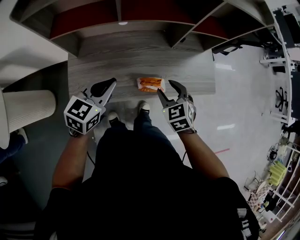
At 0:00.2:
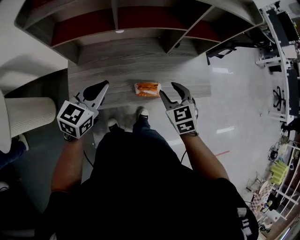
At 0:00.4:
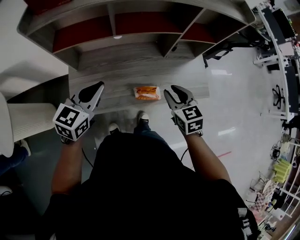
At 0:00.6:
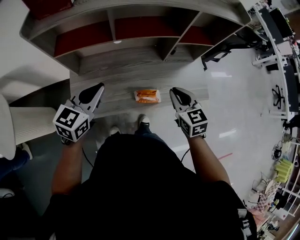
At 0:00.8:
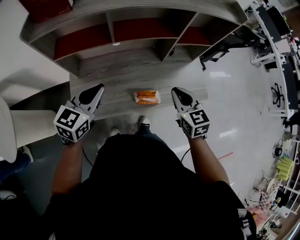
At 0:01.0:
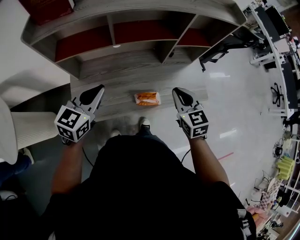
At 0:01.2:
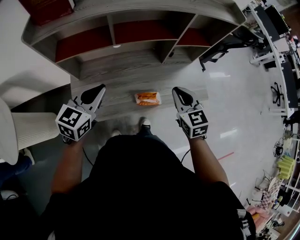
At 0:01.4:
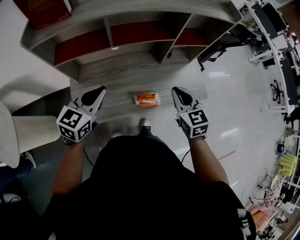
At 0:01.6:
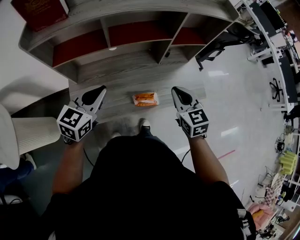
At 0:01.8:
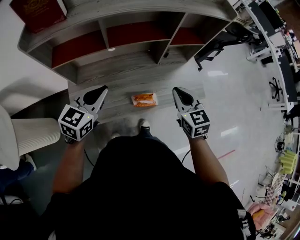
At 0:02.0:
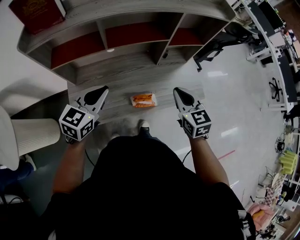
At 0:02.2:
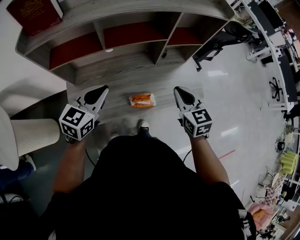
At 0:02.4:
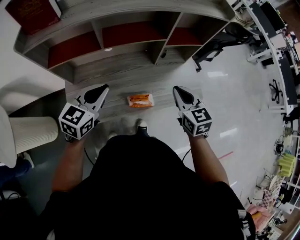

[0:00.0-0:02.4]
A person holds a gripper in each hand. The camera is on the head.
0:00.0 to 0:01.2: The two grippers go some 10 cm upward. The right gripper turns by roughly 20 degrees, and closes its fingers.
0:01.2 to 0:02.4: The two grippers go about 5 cm to the right.

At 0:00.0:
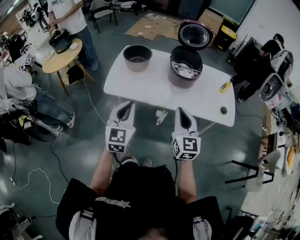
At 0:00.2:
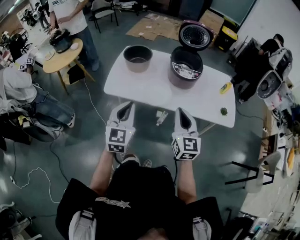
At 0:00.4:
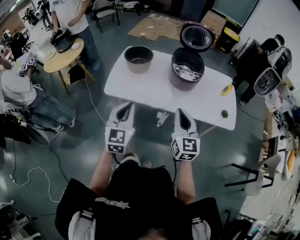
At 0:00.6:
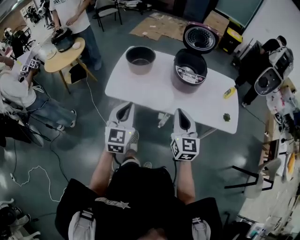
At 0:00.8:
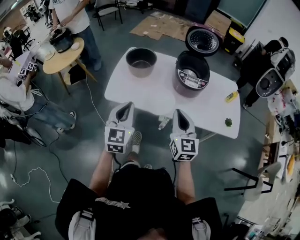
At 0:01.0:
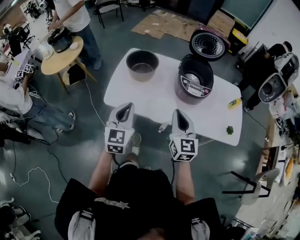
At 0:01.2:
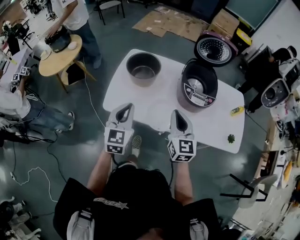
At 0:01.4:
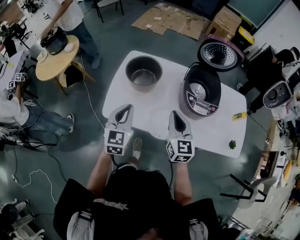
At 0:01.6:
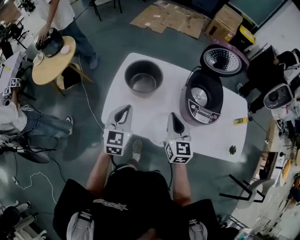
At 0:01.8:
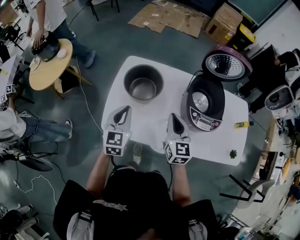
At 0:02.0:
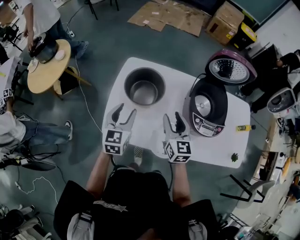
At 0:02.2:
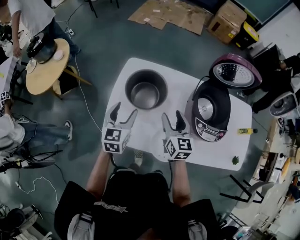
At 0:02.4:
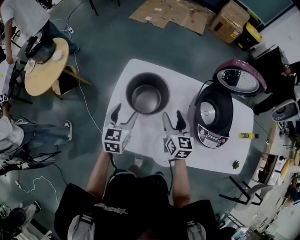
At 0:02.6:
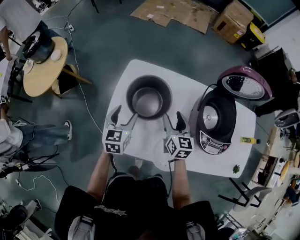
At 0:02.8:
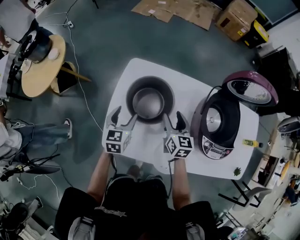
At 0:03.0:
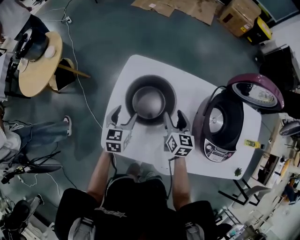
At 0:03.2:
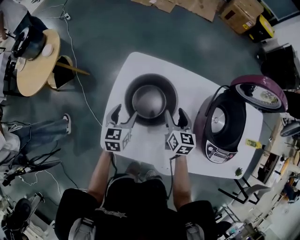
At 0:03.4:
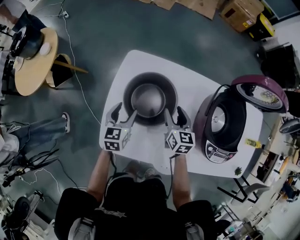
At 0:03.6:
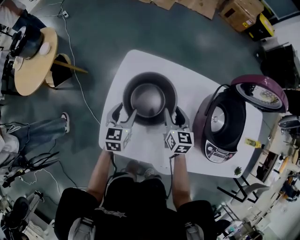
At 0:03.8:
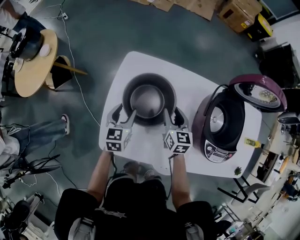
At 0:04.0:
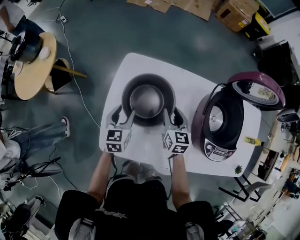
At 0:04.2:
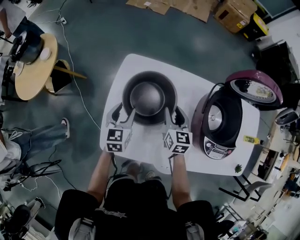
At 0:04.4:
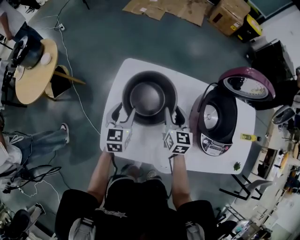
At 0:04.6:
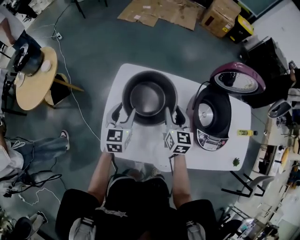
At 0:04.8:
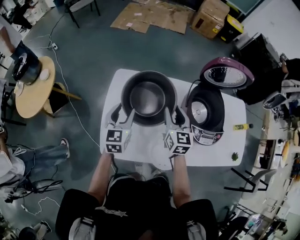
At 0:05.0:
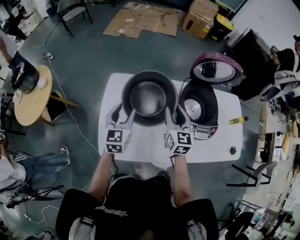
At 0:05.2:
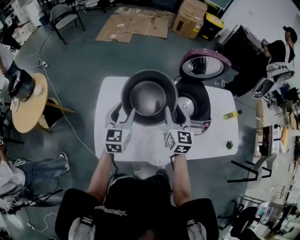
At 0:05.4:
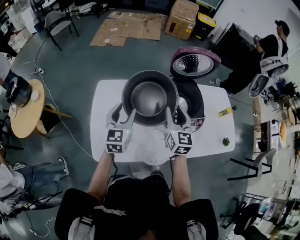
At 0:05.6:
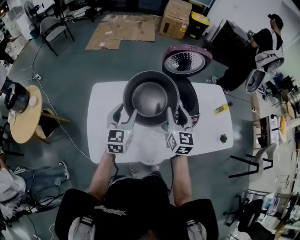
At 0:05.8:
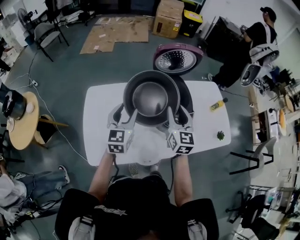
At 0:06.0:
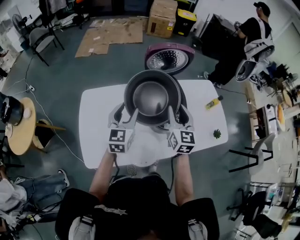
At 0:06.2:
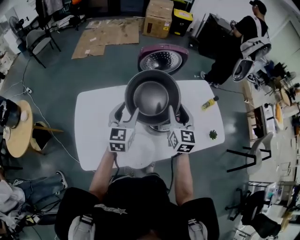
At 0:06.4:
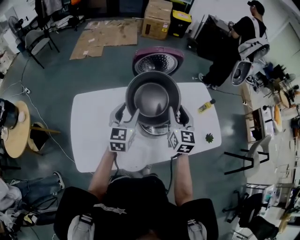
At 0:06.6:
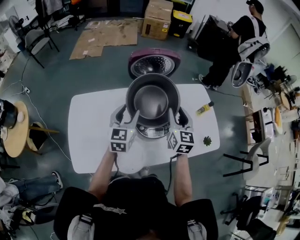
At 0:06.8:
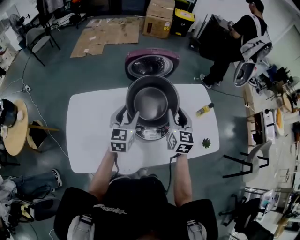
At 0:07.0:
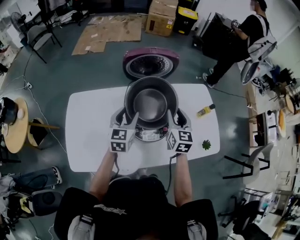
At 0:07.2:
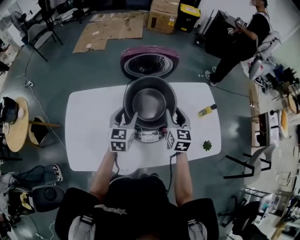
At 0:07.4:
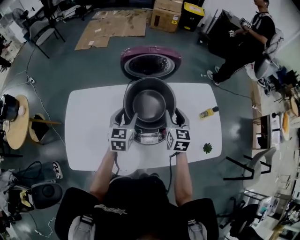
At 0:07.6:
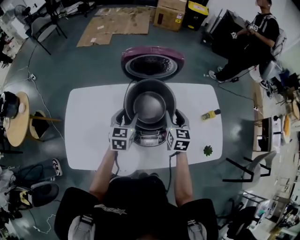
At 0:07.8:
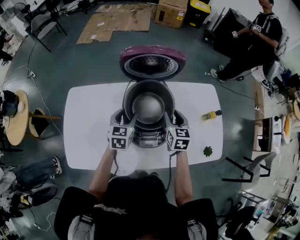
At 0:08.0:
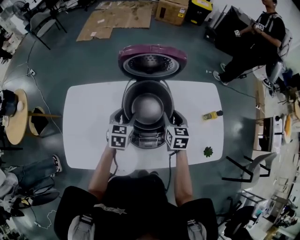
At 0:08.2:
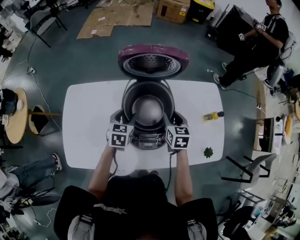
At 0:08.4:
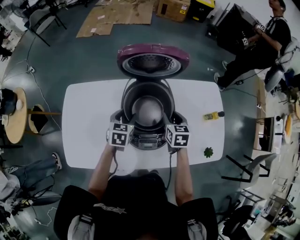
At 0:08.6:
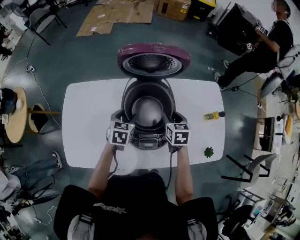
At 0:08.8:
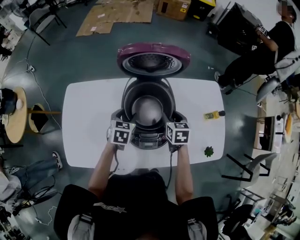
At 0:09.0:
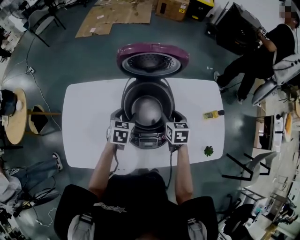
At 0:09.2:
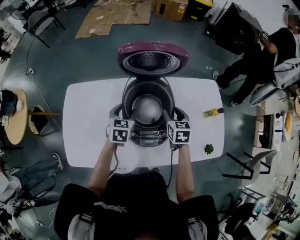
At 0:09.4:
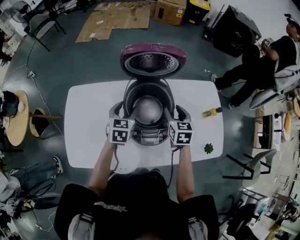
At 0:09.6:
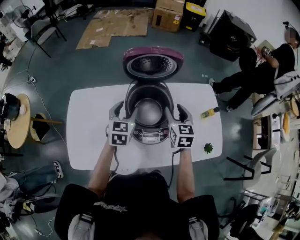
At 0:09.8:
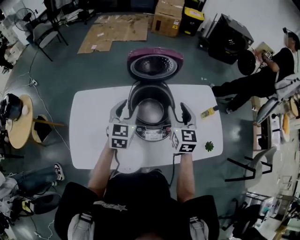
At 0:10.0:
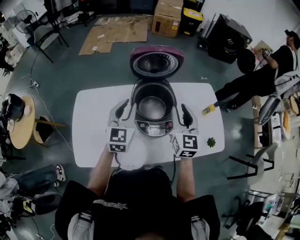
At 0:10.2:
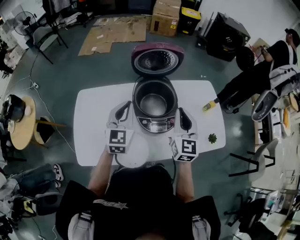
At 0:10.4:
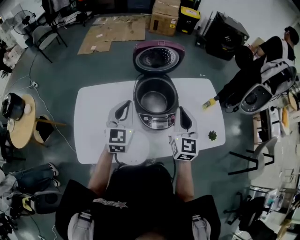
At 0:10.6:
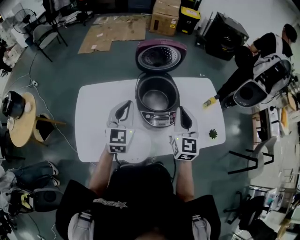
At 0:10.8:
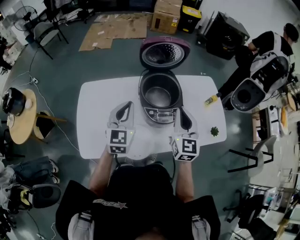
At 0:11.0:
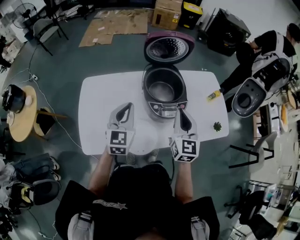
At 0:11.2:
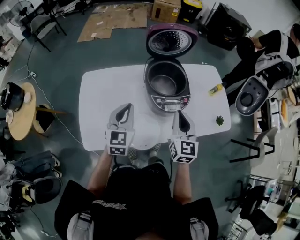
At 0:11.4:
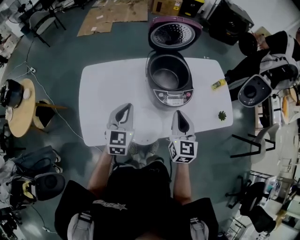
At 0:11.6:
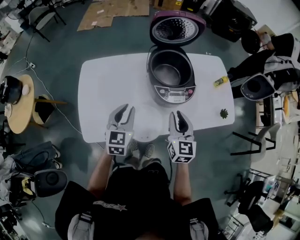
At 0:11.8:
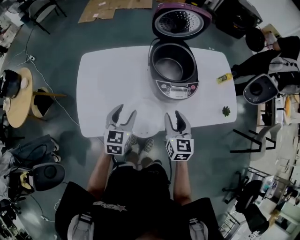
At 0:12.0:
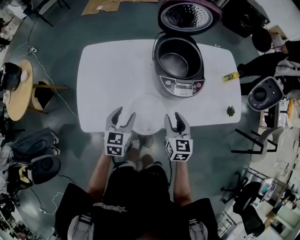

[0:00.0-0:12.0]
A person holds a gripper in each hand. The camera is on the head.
0:00.0 to 0:01.6: Both grippers move forward, some 30 cm.
0:01.6 to 0:03.0: Both grippers travel together forward and downward, some 25 cm. The right gripper turns by some 20 degrees, and opens its fingers. Meanwhile the left gripper swivels approximately 20 degrees, and opens up.
0:03.0 to 0:04.4: The right gripper closes up.
0:04.4 to 0:06.0: Both grippers travel together to the right and upward, about 30 cm. The right gripper swivels some 30 degrees. The left gripper rotates about 30 degrees.
0:06.0 to 0:07.6: The right gripper is displaced downward, forward and to the right by about 20 cm, while the left gripper is displaced to the right, downward and forward by roughly 20 cm.
0:07.6 to 0:09.0: Both grippers move downward, approximately 5 cm. The right gripper rotates approximately 20 degrees.
0:09.0 to 0:10.4: The grippers both shift upward and backward by approximately 25 cm. The right gripper tilts its fingers approximately 40 degrees upward, and closes; the left gripper points its fingers roughly 40 degrees further upward, and closes up.
0:10.4 to 0:12.0: The right gripper moves downward, backward and to the left, about 25 cm, rotates roughly 30 degrees, and opens up. Meanwhile the left gripper is displaced downward and backward by approximately 25 cm, changes its angle by some 30 degrees, and opens its fingers.

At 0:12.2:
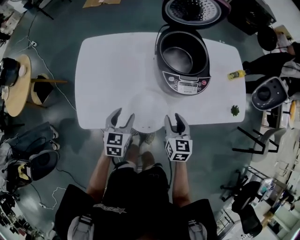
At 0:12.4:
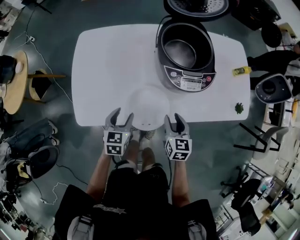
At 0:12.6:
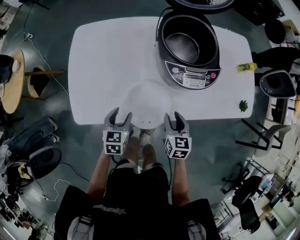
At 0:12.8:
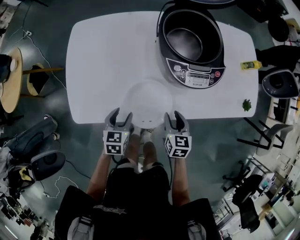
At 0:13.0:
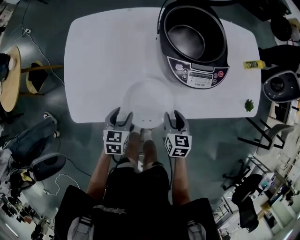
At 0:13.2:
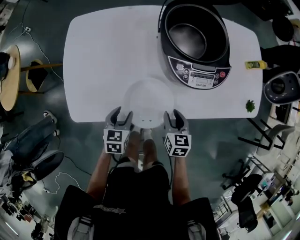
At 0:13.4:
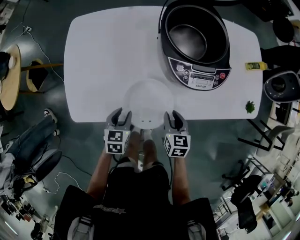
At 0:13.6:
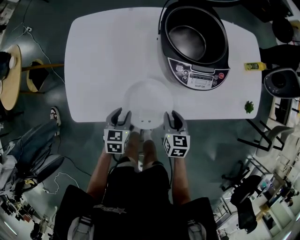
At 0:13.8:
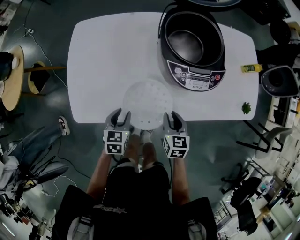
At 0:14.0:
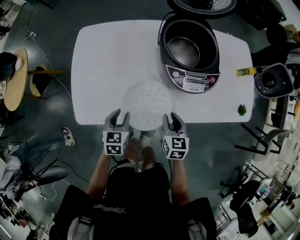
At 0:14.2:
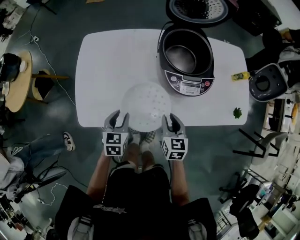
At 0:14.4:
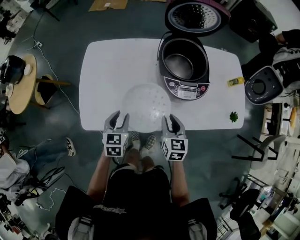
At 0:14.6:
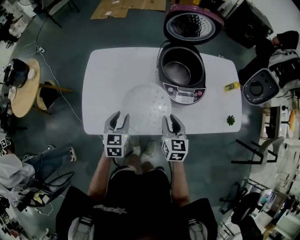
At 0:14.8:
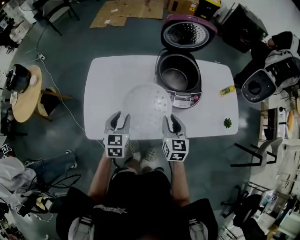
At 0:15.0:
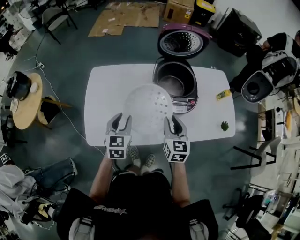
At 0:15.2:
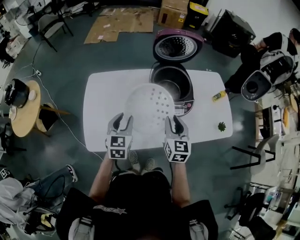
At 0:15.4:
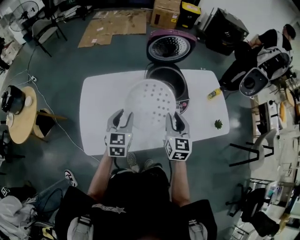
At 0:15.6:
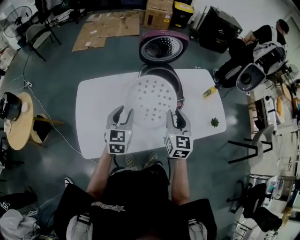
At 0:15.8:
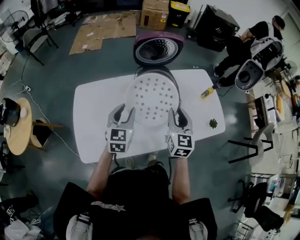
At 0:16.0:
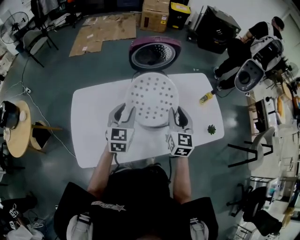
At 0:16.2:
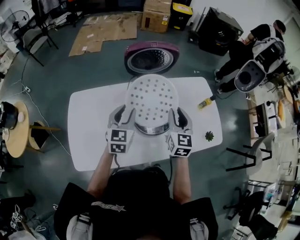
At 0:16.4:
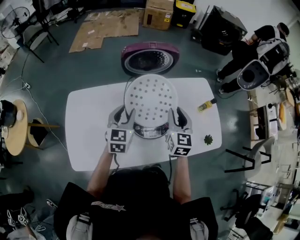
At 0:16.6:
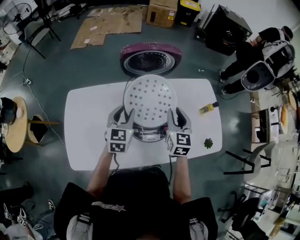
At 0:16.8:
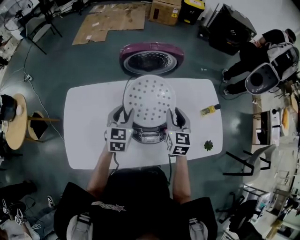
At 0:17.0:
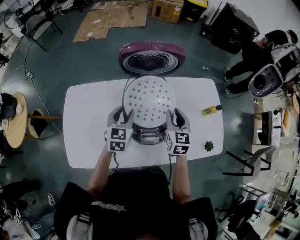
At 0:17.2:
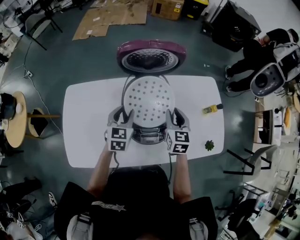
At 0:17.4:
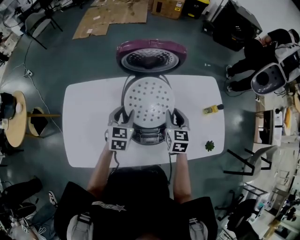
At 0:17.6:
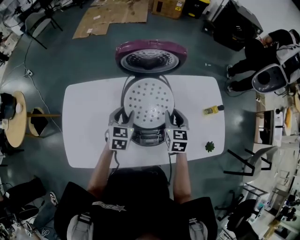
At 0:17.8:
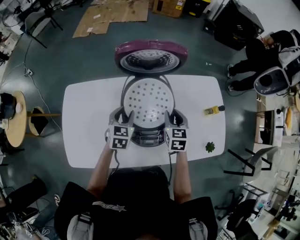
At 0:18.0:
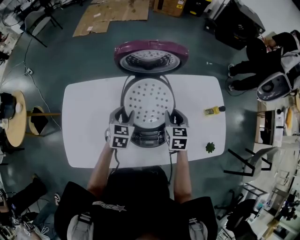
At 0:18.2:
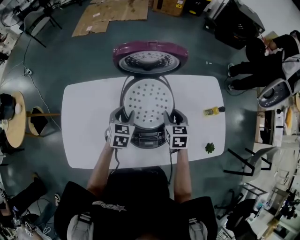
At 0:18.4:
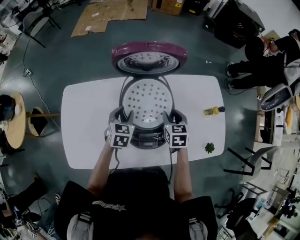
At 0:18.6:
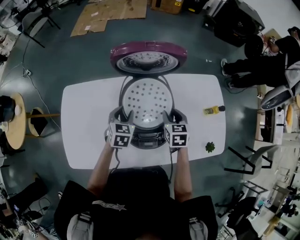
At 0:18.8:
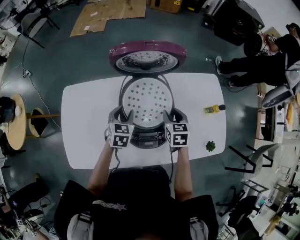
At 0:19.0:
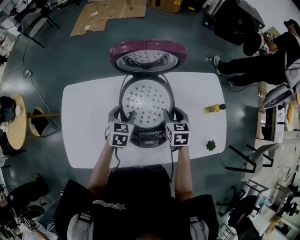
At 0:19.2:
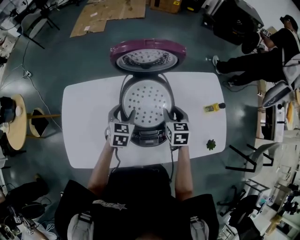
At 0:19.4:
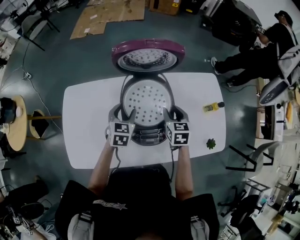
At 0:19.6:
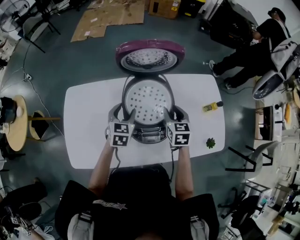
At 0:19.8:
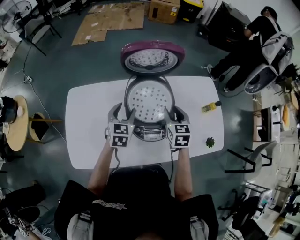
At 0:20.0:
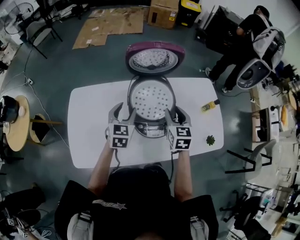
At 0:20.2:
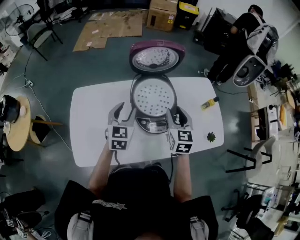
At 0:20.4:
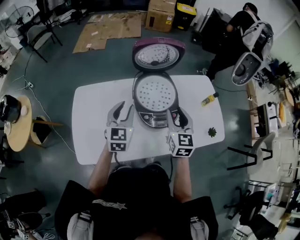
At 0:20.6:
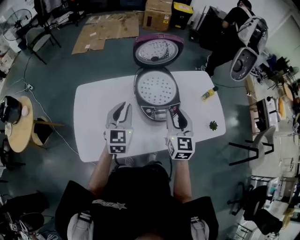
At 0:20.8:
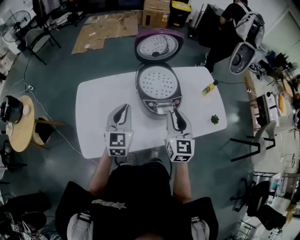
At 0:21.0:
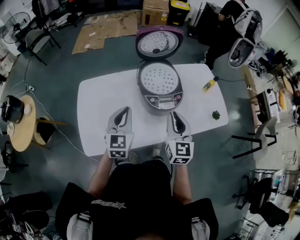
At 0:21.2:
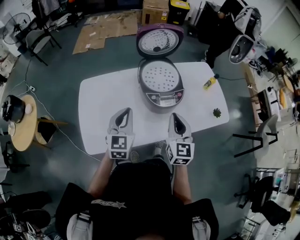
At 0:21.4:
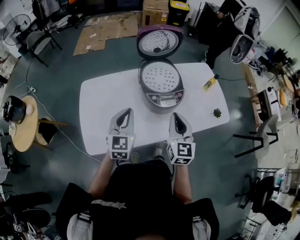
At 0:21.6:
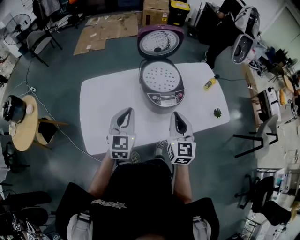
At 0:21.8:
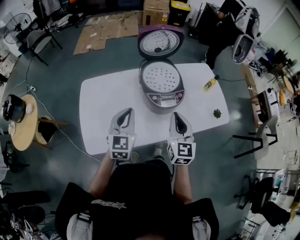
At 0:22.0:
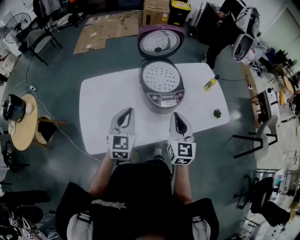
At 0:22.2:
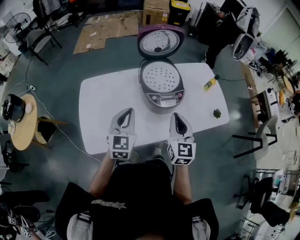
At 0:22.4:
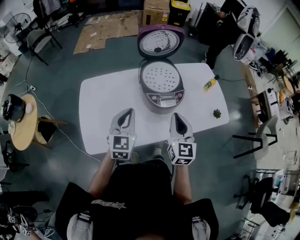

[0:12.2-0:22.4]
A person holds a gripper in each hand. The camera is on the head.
0:12.2 to 0:13.6: Both grippers move downward, approximately 10 cm.
0:13.6 to 0:15.2: The left gripper shifts approximately 25 cm upward and forward, and turns by roughly 30 degrees, while the right gripper heads upward, covering about 25 cm, and swivels roughly 30 degrees.
0:15.2 to 0:16.6: The two grippers go about 20 cm forward and to the right.
0:16.6 to 0:18.0: Both grippers move downward, roughly 10 cm. The right gripper swivels roughly 20 degrees.
0:18.0 to 0:19.4: The grippers stay close to where they were, moving slightly.
0:19.4 to 0:21.0: The right gripper heads backward and upward, covering approximately 30 cm, tips its fingers upward by approximately 30 degrees, and closes up; the left gripper heads backward, upward and to the left, covering some 25 cm, swivels about 30 degrees, and closes up.
0:21.0 to 0:22.4: The grippers stay close to where they were, moving slightly.
